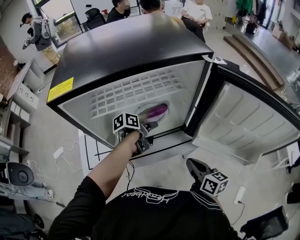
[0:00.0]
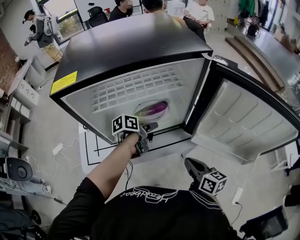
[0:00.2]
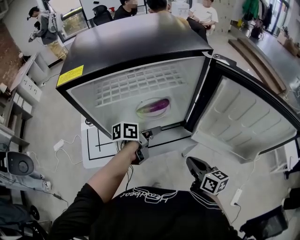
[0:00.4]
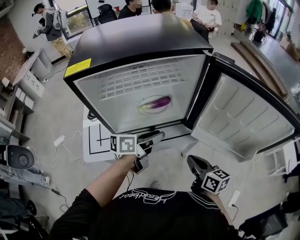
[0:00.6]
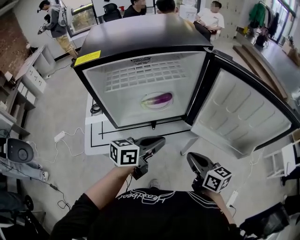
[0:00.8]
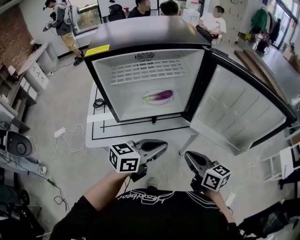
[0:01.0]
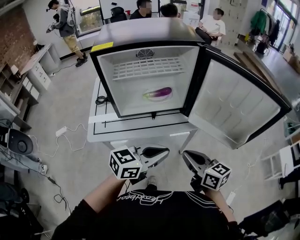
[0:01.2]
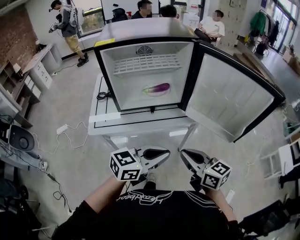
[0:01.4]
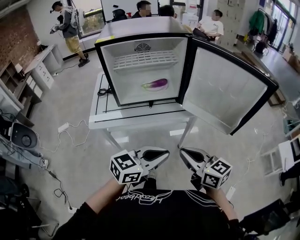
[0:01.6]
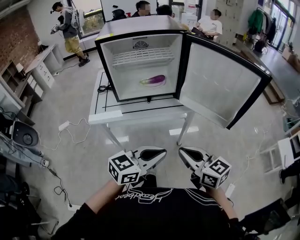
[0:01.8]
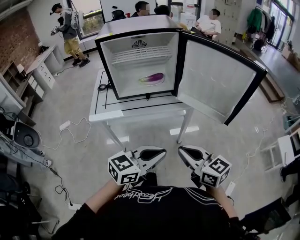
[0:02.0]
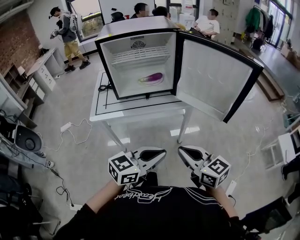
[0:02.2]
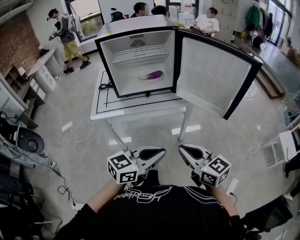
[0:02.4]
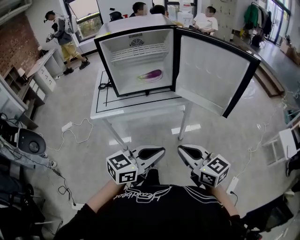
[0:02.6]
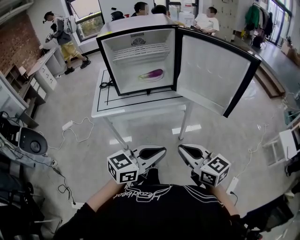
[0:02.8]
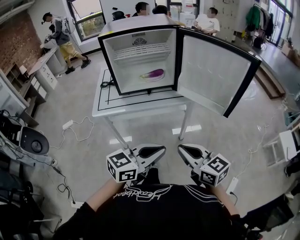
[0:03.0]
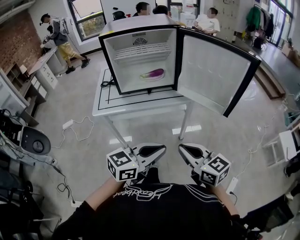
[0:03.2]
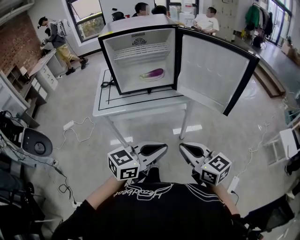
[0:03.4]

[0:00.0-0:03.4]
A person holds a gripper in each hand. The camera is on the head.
0:00.0 to 0:01.6: The right gripper shifts by approximately 25 cm, and turns by roughly 30 degrees.
0:01.6 to 0:03.4: The right gripper moves about 10 cm.

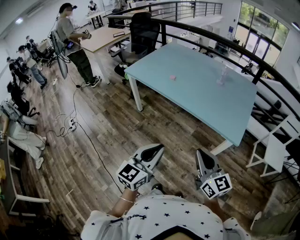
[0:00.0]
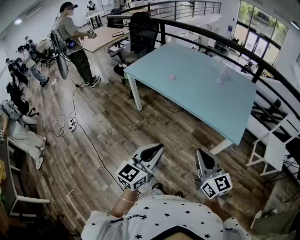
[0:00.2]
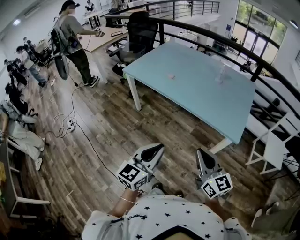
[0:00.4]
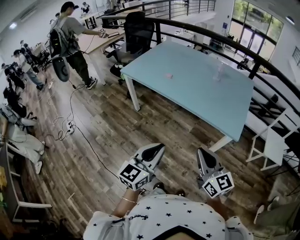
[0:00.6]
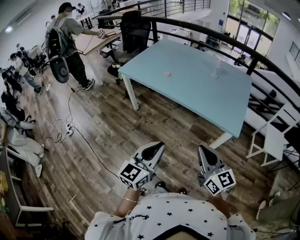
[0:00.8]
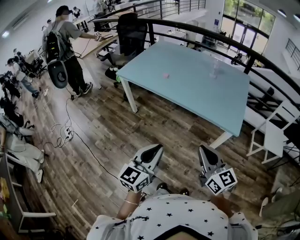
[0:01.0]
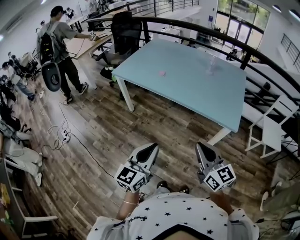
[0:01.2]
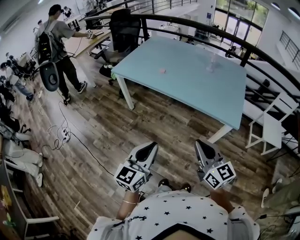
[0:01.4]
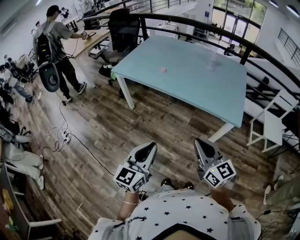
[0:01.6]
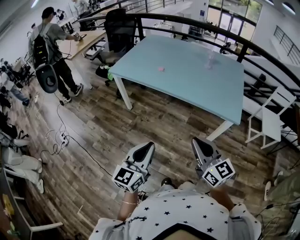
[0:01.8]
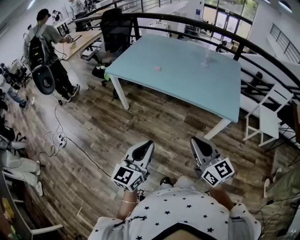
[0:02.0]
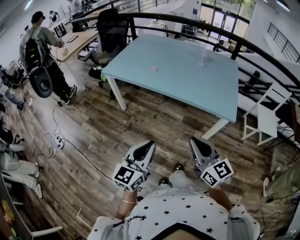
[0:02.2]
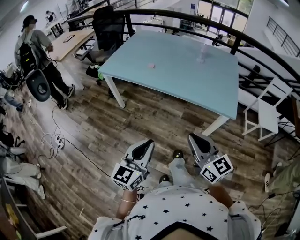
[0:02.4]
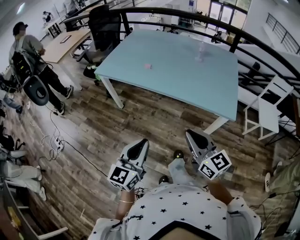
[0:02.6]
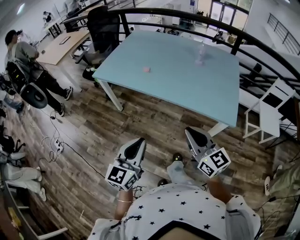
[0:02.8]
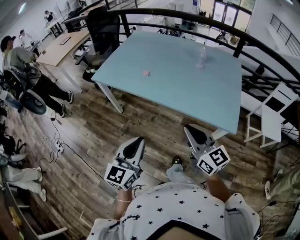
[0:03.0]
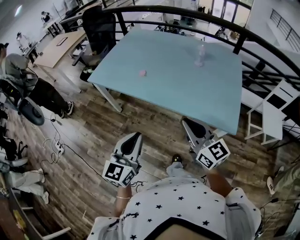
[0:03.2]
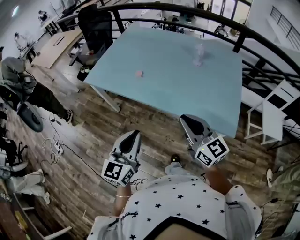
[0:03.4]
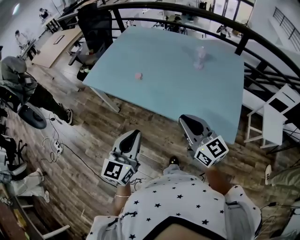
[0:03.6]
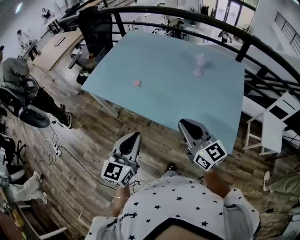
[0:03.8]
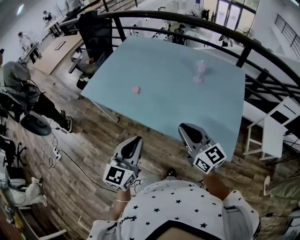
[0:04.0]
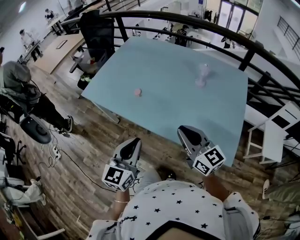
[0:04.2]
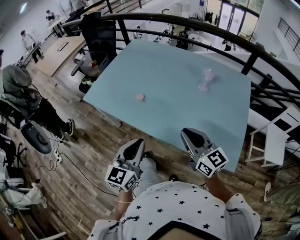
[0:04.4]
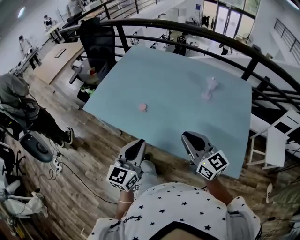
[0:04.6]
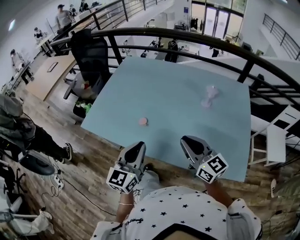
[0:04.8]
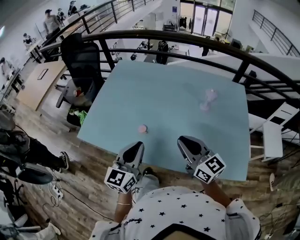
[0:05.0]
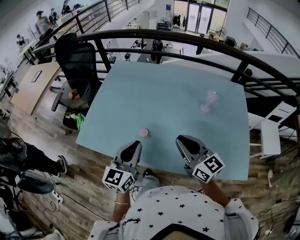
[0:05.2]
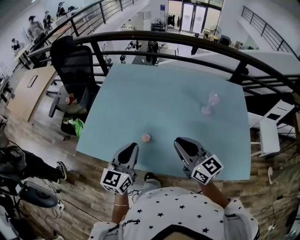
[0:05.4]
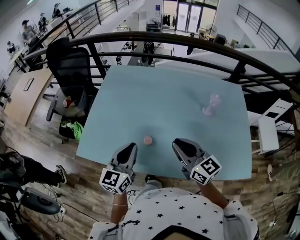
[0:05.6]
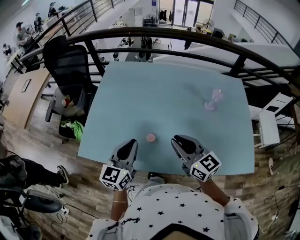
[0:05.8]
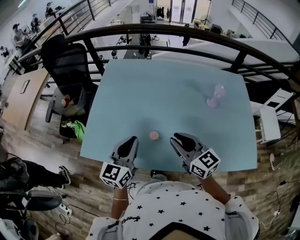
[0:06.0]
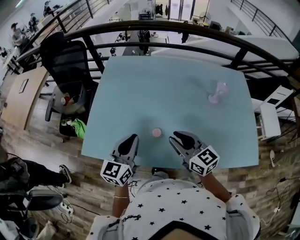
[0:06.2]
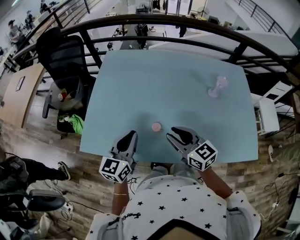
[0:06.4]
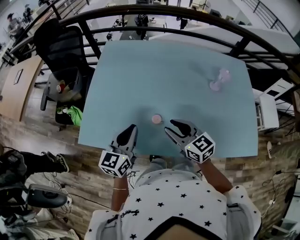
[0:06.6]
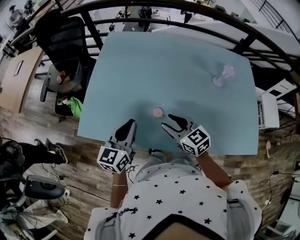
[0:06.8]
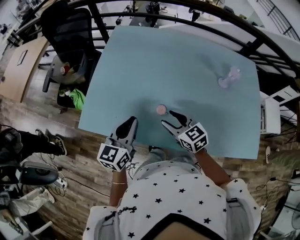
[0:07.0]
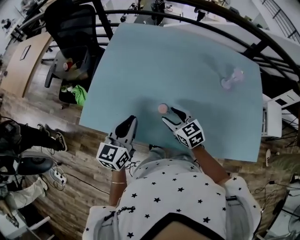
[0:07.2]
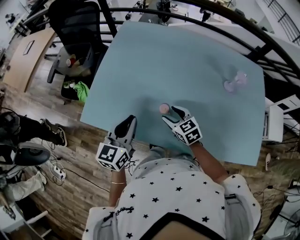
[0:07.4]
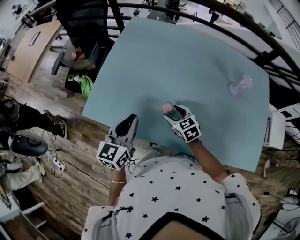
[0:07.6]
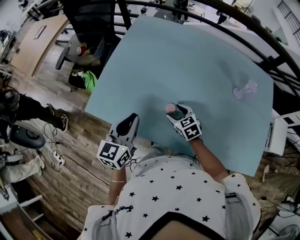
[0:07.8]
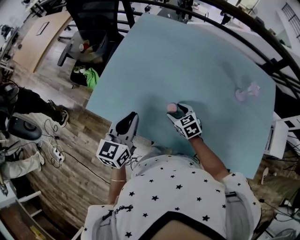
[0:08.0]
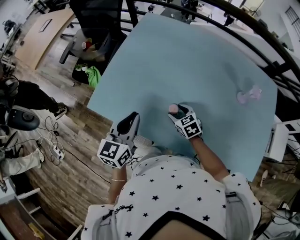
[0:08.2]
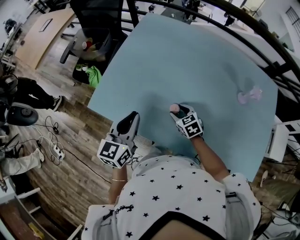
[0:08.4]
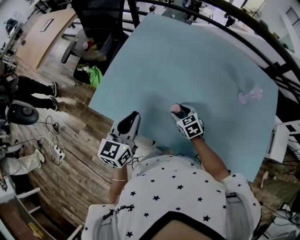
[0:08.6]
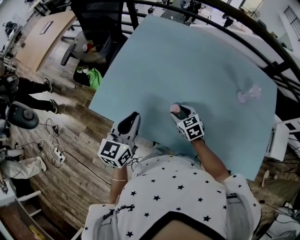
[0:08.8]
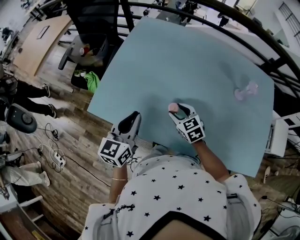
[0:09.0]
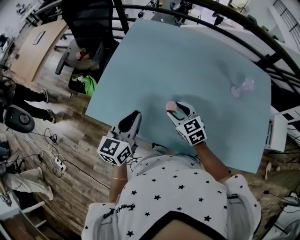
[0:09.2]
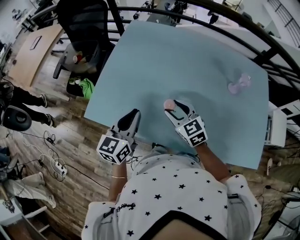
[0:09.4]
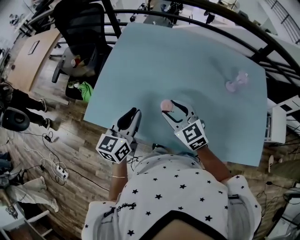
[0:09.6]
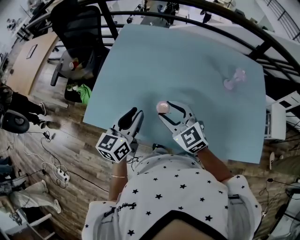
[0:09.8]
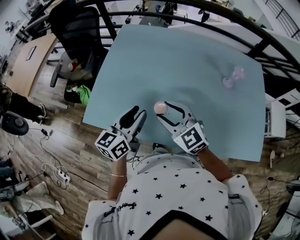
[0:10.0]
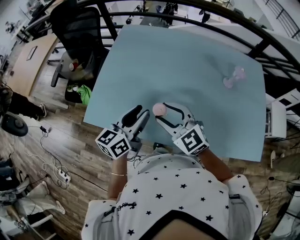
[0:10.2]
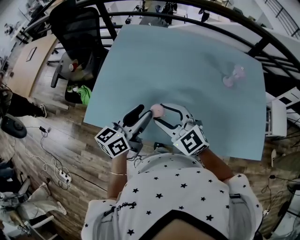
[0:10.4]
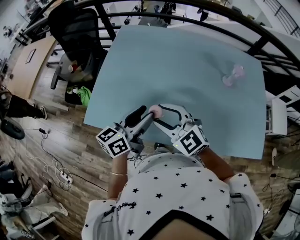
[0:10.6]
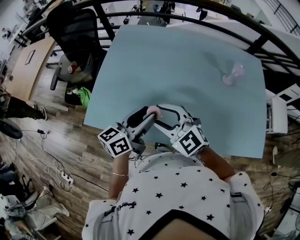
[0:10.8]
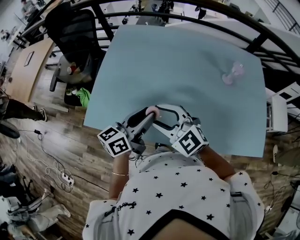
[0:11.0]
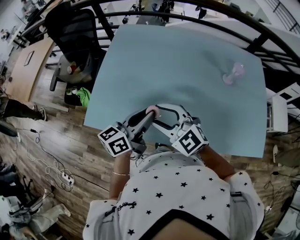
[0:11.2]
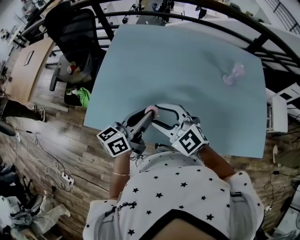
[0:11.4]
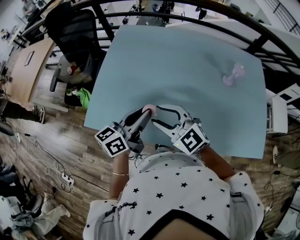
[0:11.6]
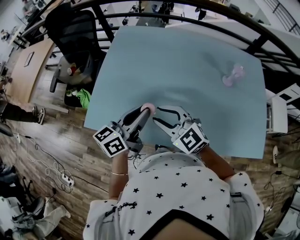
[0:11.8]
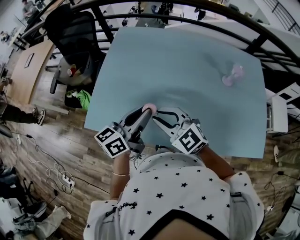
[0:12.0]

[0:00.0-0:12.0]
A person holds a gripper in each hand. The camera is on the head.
0:00.0 to 0:01.6: Both grippers travel together to the left, some 5 cm.
0:01.6 to 0:03.0: Both grippers travel together forward, approximately 15 cm.
0:03.0 to 0:04.4: The two grippers go some 20 cm forward.
0:04.4 to 0:06.0: Both grippers travel together forward and to the left, approximately 30 cm.
0:06.0 to 0:07.6: The left gripper travels to the left by some 5 cm. Meanwhile the right gripper is displaced downward by approximately 20 cm, points its fingers approximately 30 degrees further downward, and opens.
0:07.6 to 0:09.0: The grippers stay close to where they were, moving slightly.
0:09.0 to 0:10.4: The right gripper travels upward by some 15 cm, and changes its angle by some 30 degrees, while the left gripper shifts some 5 cm to the right, rotates about 30 degrees, and opens.
0:10.4 to 0:12.0: The left gripper closes its fingers. Meanwhile the right gripper closes.

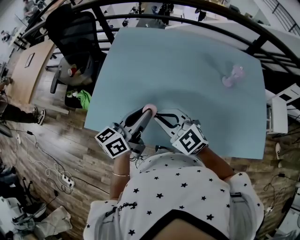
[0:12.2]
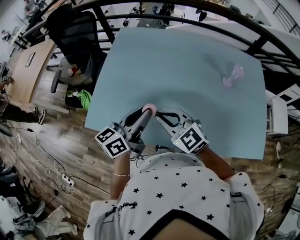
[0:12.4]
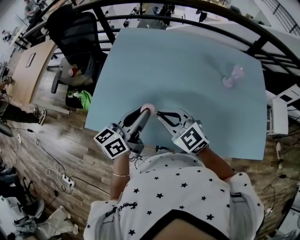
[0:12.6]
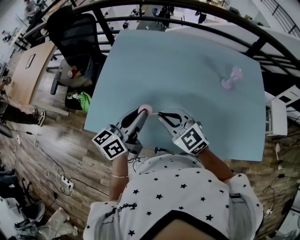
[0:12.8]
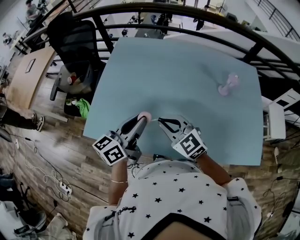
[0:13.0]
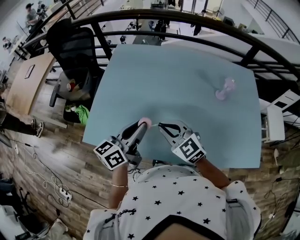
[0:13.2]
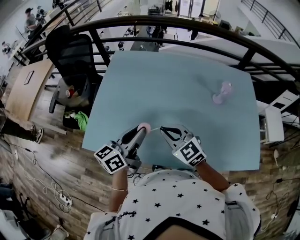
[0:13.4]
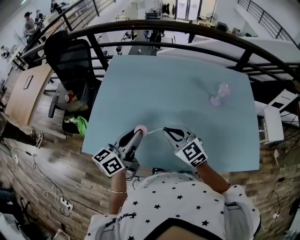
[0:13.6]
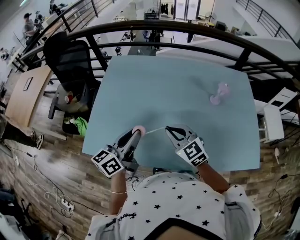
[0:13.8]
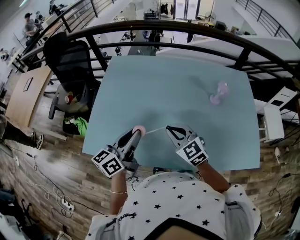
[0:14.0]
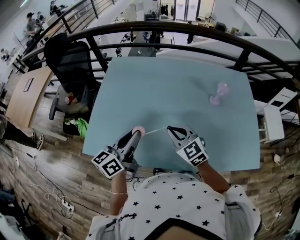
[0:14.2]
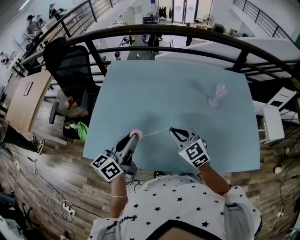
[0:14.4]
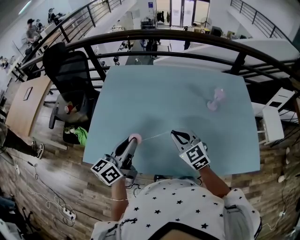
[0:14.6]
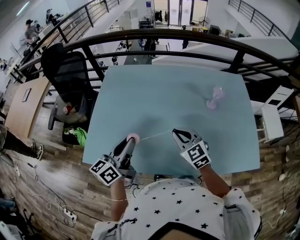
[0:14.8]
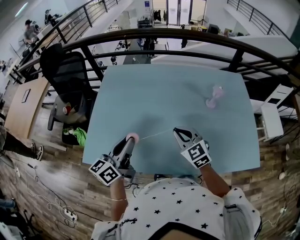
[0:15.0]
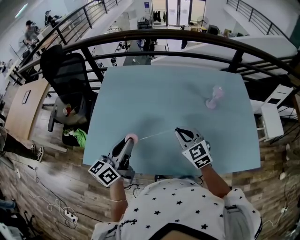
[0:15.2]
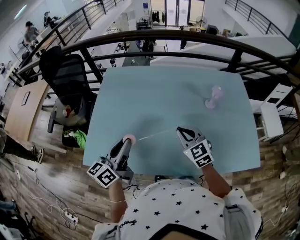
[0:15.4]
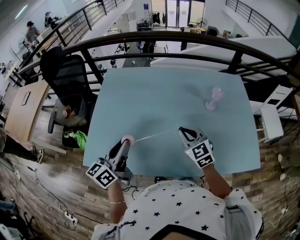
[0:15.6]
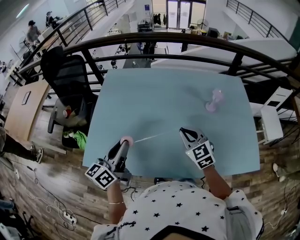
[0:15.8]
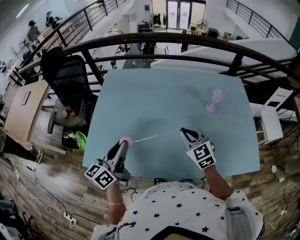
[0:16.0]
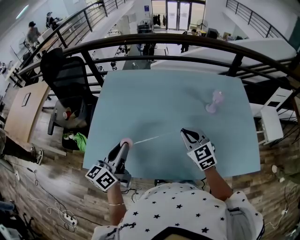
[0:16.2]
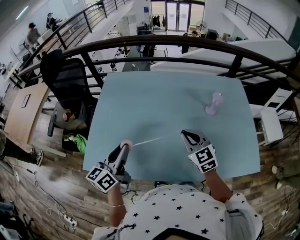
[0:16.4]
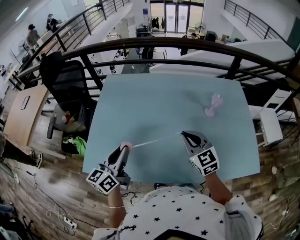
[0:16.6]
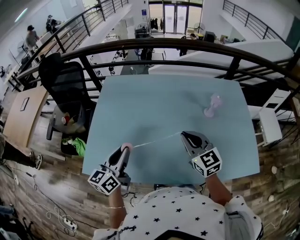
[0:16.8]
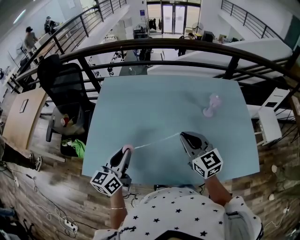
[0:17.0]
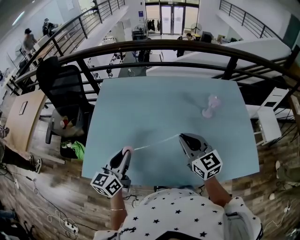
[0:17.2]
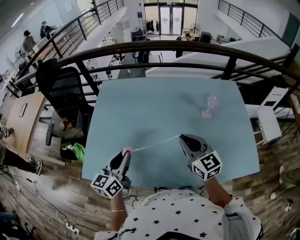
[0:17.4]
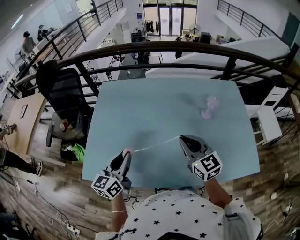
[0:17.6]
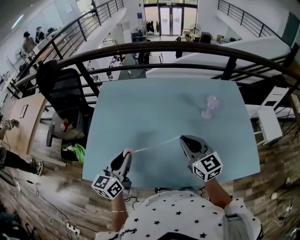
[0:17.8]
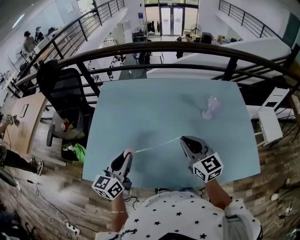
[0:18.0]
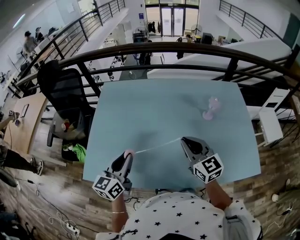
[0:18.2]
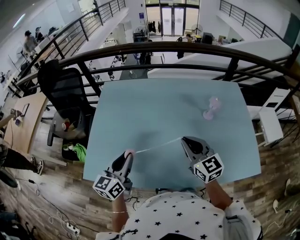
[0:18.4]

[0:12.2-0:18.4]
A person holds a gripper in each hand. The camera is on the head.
0:12.2 to 0:13.8: The right gripper heads to the right, covering about 10 cm.
0:13.8 to 0:15.4: The right gripper moves to the right, roughly 5 cm.
0:15.4 to 0:16.8: The right gripper moves upward, about 5 cm.
0:16.8 to 0:18.4: There are only small adjustments of the grippers.

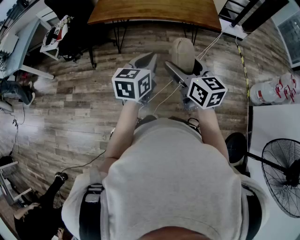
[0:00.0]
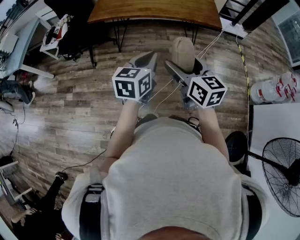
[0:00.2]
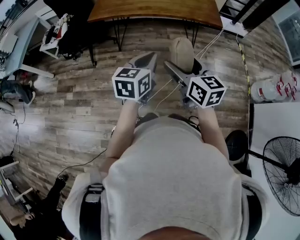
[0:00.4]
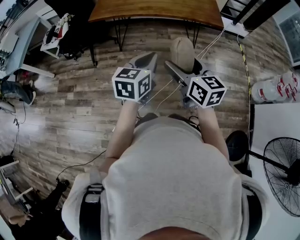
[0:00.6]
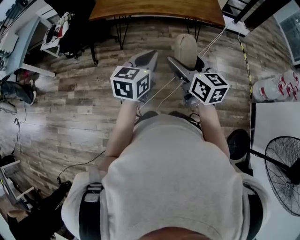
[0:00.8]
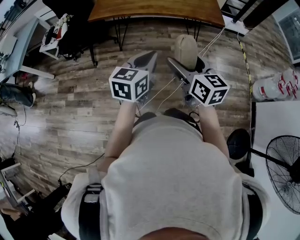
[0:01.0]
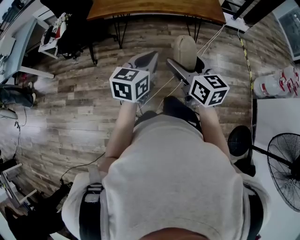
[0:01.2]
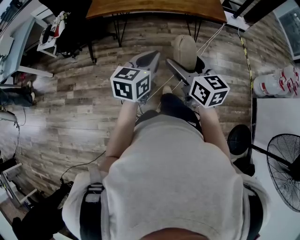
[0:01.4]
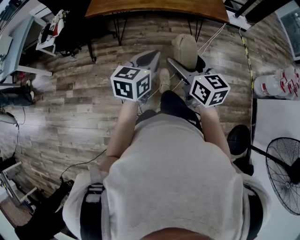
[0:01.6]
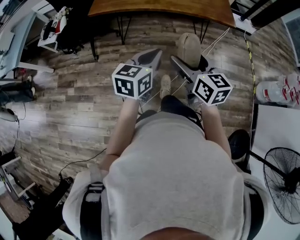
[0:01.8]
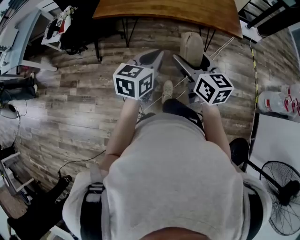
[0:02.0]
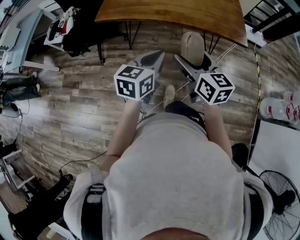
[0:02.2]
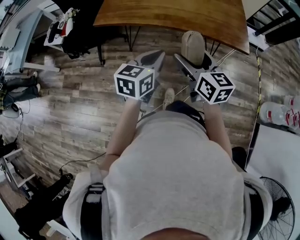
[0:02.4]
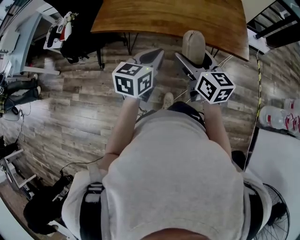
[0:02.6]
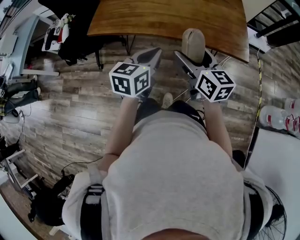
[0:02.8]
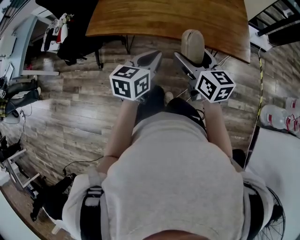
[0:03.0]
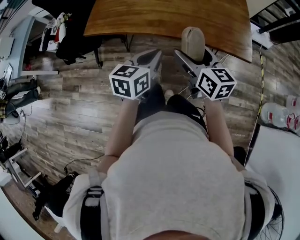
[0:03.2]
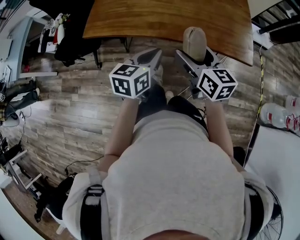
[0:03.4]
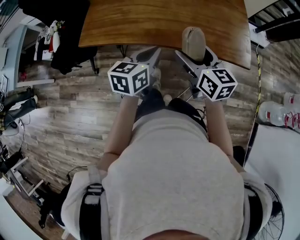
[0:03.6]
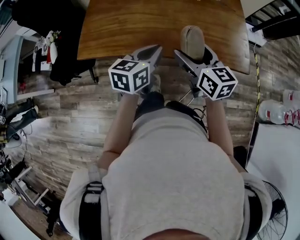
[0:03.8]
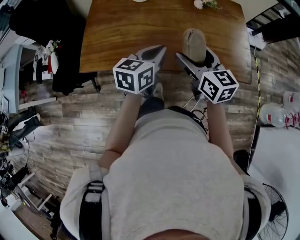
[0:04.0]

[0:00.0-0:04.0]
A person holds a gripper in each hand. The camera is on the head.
0:00.0 to 0:01.4: The grippers stay close to where they were, moving slightly.
0:01.4 to 0:02.6: The two grippers go some 30 cm forward.
0:02.6 to 0:04.0: The grippers both shift forward by roughly 25 cm.
